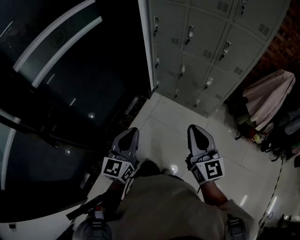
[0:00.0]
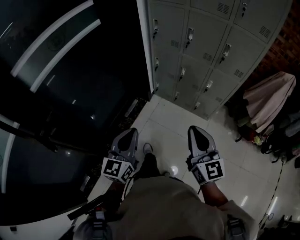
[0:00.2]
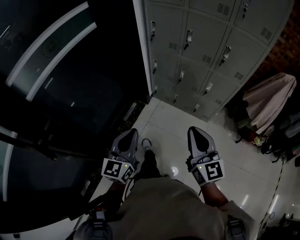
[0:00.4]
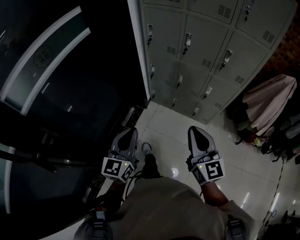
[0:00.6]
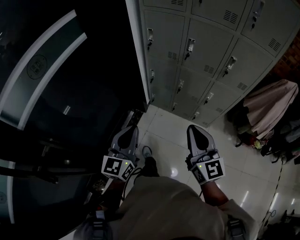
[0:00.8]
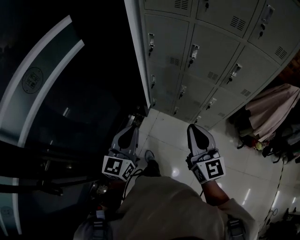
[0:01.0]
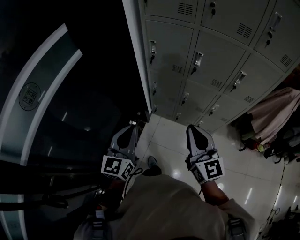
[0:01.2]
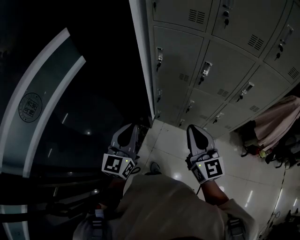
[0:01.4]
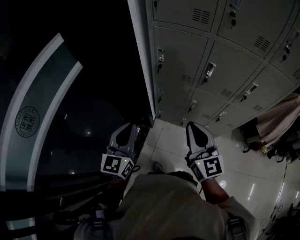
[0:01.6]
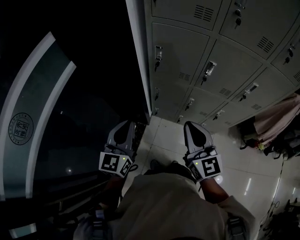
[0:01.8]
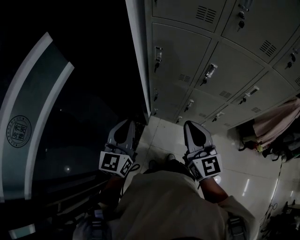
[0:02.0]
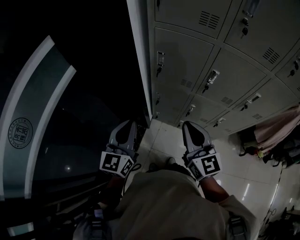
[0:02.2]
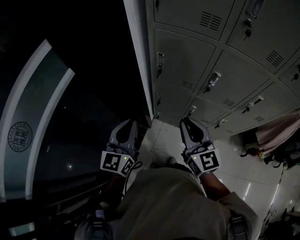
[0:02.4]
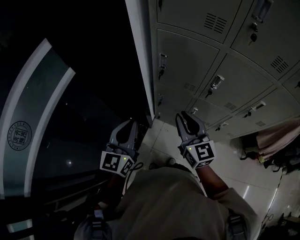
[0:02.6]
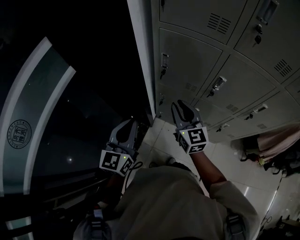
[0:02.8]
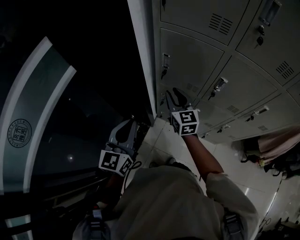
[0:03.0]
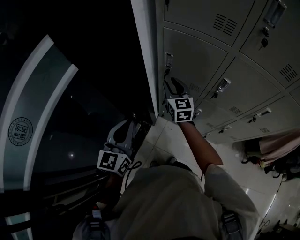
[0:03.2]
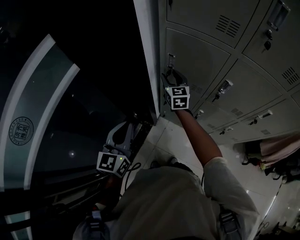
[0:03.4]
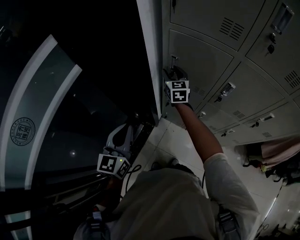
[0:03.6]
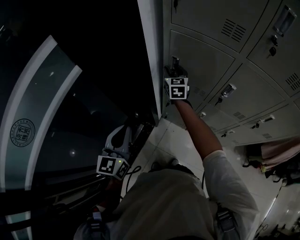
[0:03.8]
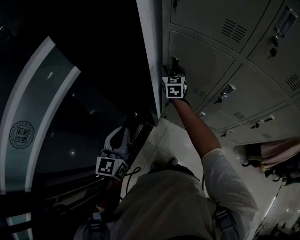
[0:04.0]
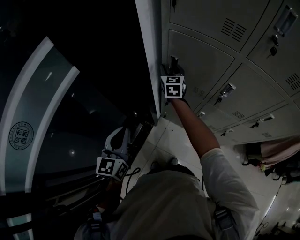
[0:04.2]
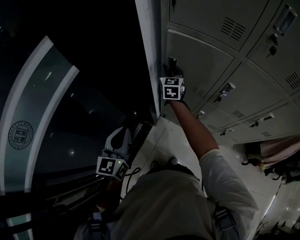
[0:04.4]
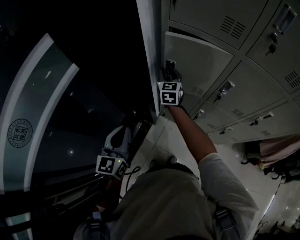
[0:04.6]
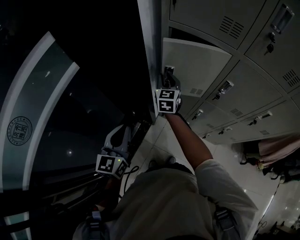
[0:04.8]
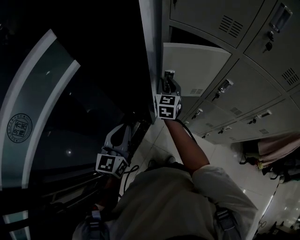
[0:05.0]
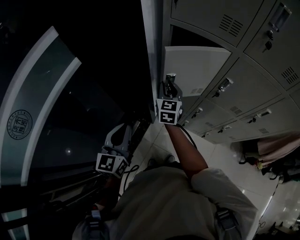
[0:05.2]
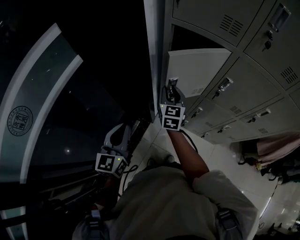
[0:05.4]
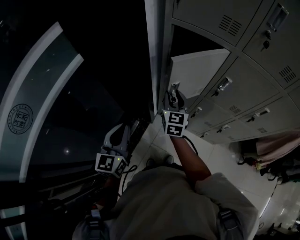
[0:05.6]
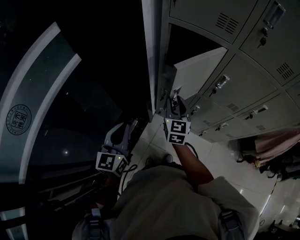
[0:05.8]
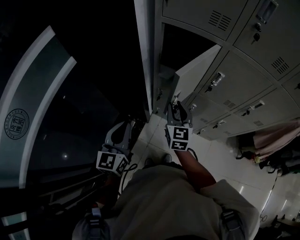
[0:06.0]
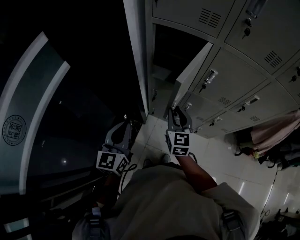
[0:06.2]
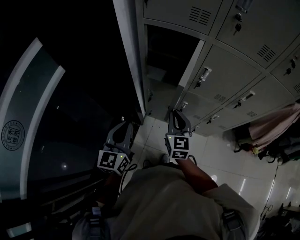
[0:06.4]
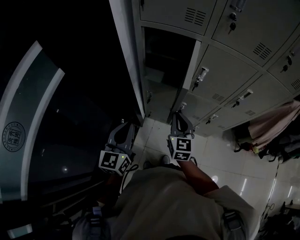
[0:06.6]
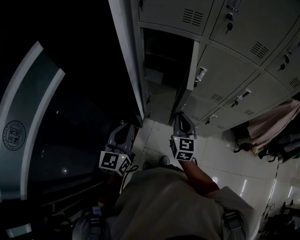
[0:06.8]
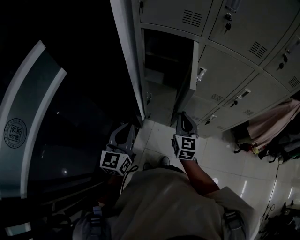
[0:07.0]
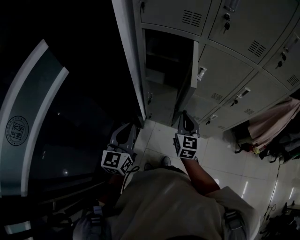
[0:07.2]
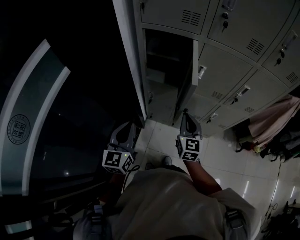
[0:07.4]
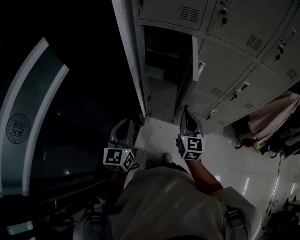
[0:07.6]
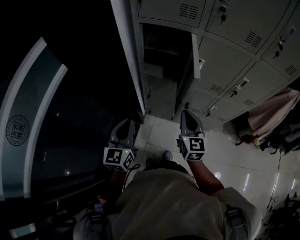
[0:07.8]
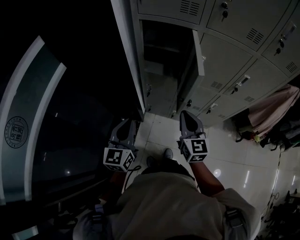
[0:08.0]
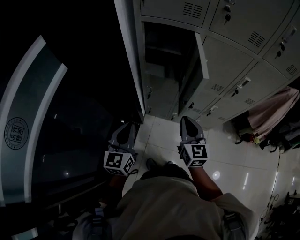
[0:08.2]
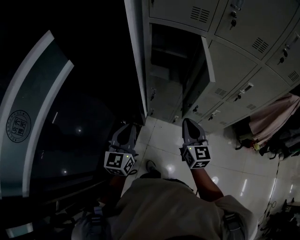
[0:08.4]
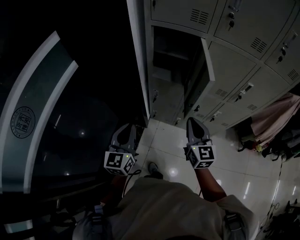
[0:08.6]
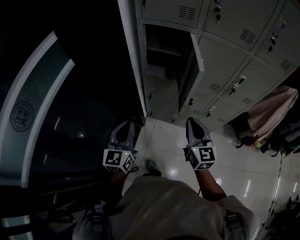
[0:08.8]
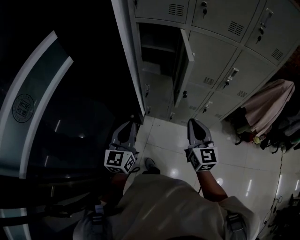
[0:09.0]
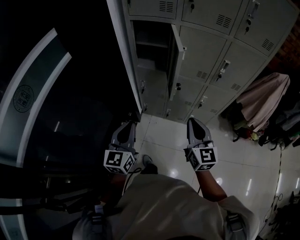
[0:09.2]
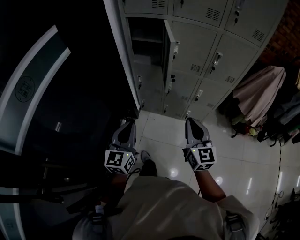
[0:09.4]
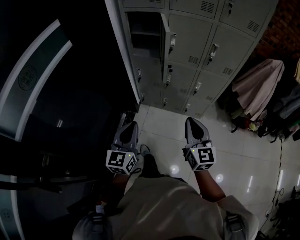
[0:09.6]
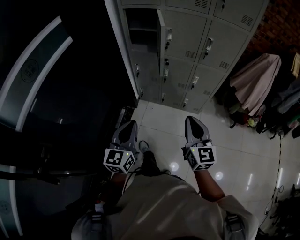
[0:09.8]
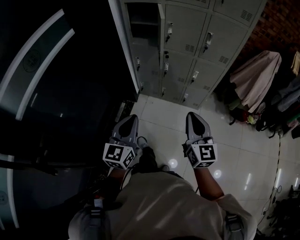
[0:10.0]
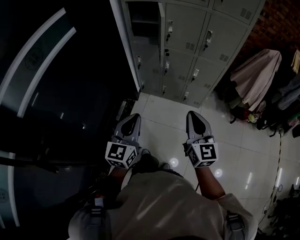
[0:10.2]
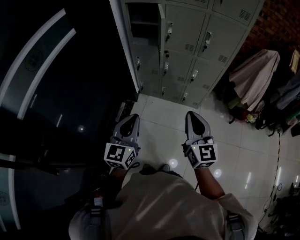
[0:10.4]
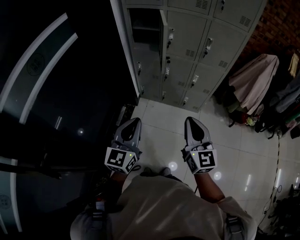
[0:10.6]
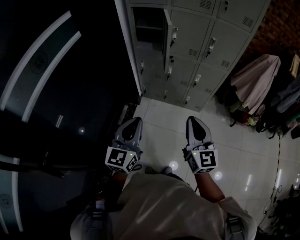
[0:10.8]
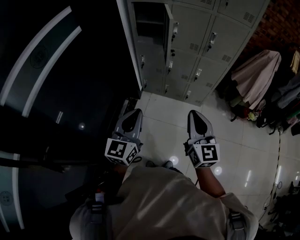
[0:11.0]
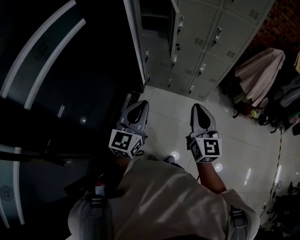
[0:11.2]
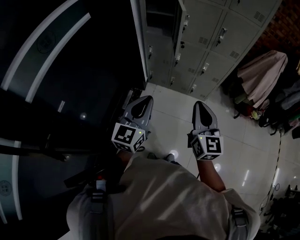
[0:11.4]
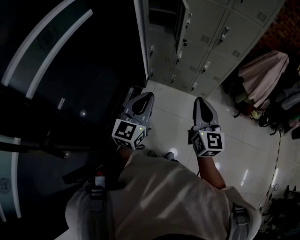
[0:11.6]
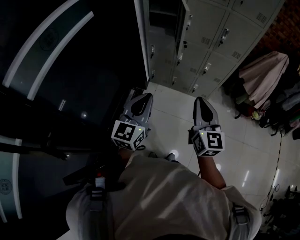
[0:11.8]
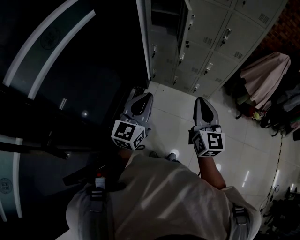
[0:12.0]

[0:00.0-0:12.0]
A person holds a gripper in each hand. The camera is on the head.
0:00.0 to 0:01.6: The pair of grippers is taken forward, approximately 50 cm.
0:01.6 to 0:03.0: The right gripper travels forward and downward by approximately 30 cm, and opens up. The left gripper heads forward, covering some 10 cm.
0:03.0 to 0:04.4: The left gripper shifts approximately 5 cm to the left; the right gripper heads forward, covering roughly 15 cm.
0:04.4 to 0:06.0: The right gripper moves backward, approximately 25 cm.
0:06.0 to 0:07.6: The left gripper moves to the right, about 5 cm, while the right gripper is displaced to the right and backward by approximately 15 cm, and closes its fingers.
0:07.6 to 0:09.0: The right gripper is displaced backward and upward by some 15 cm, while the left gripper is displaced backward by some 10 cm.
0:09.0 to 0:10.4: Both grippers move backward and to the right, some 30 cm.
0:10.4 to 0:12.0: The left gripper moves roughly 5 cm, while the right gripper travels to the left by about 5 cm.

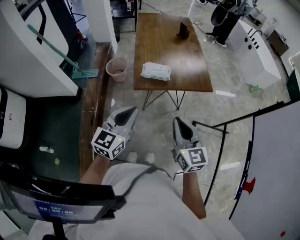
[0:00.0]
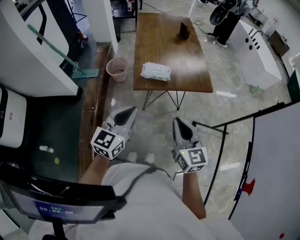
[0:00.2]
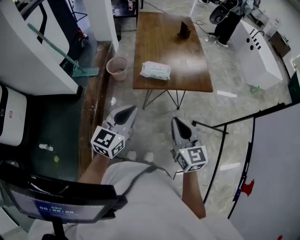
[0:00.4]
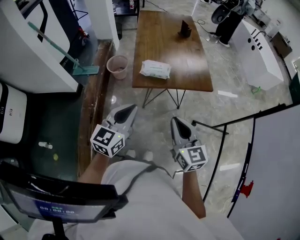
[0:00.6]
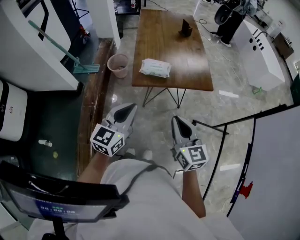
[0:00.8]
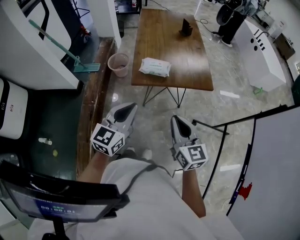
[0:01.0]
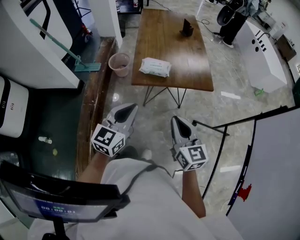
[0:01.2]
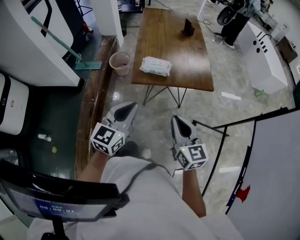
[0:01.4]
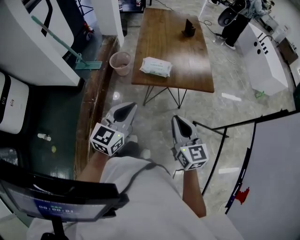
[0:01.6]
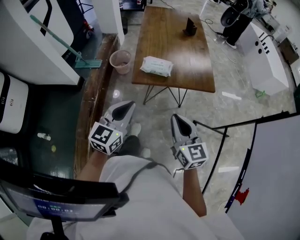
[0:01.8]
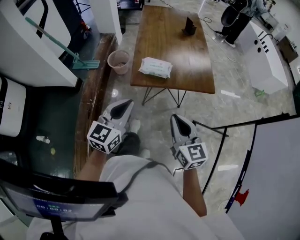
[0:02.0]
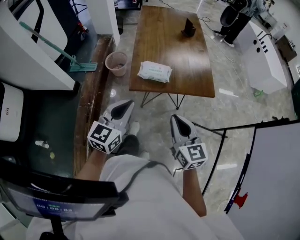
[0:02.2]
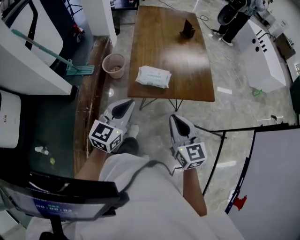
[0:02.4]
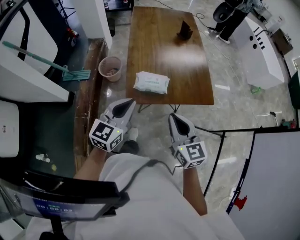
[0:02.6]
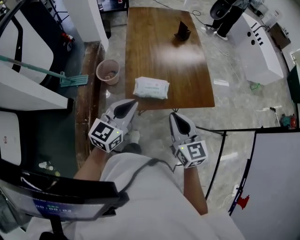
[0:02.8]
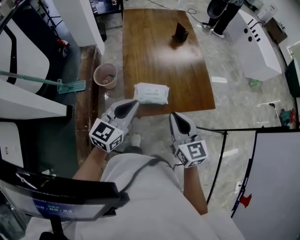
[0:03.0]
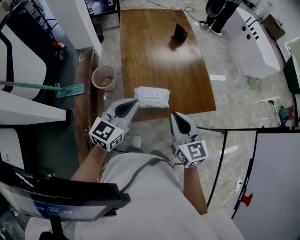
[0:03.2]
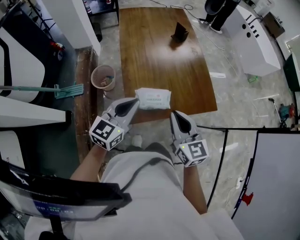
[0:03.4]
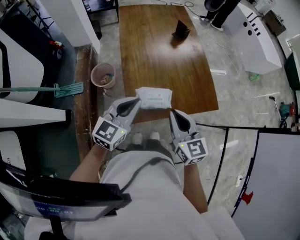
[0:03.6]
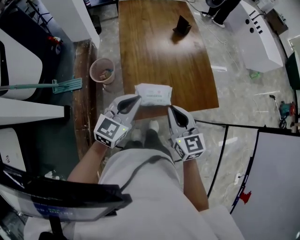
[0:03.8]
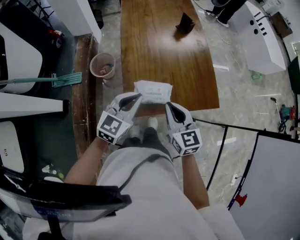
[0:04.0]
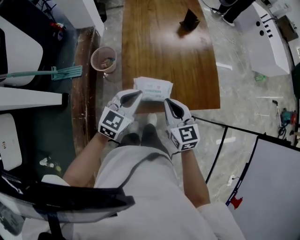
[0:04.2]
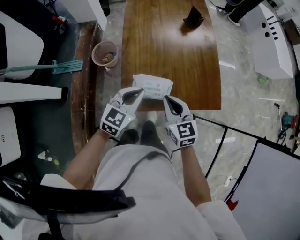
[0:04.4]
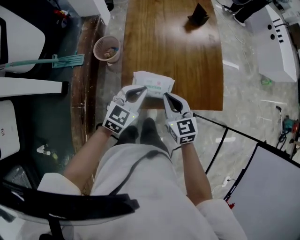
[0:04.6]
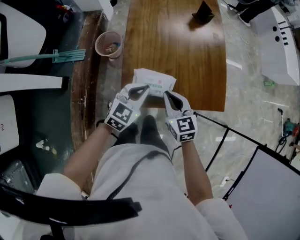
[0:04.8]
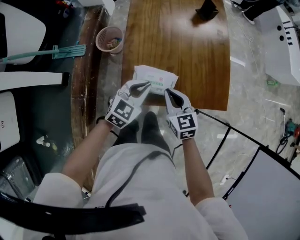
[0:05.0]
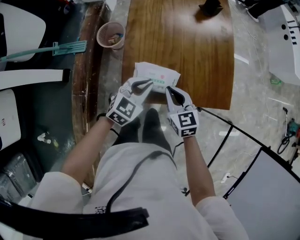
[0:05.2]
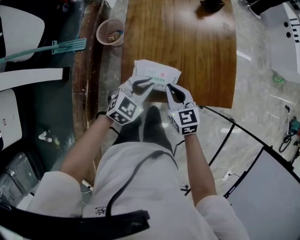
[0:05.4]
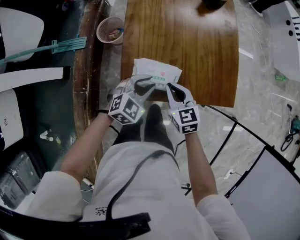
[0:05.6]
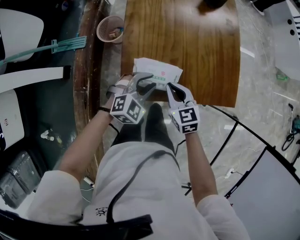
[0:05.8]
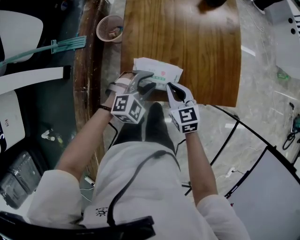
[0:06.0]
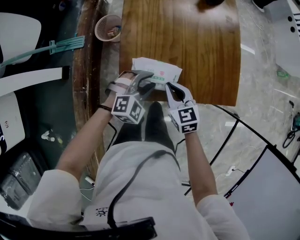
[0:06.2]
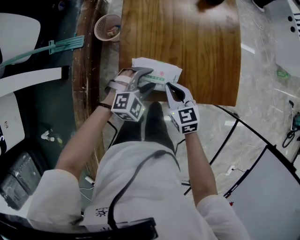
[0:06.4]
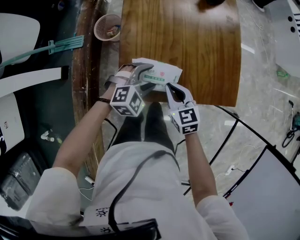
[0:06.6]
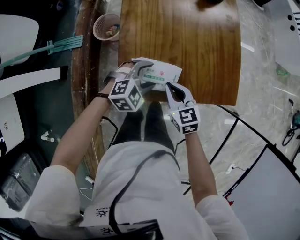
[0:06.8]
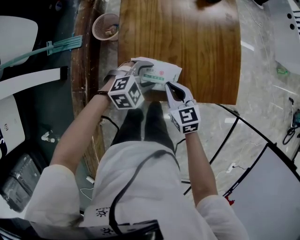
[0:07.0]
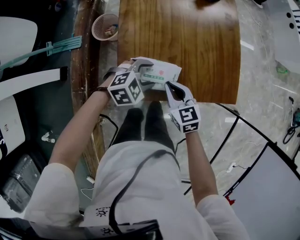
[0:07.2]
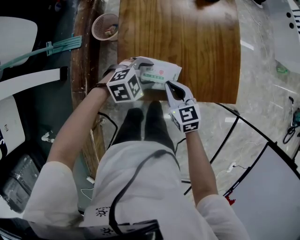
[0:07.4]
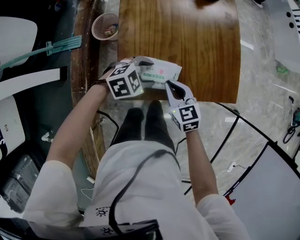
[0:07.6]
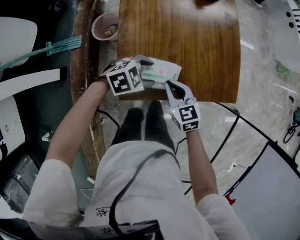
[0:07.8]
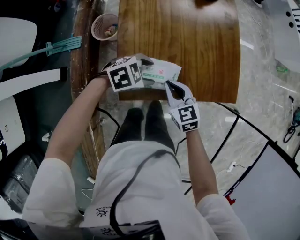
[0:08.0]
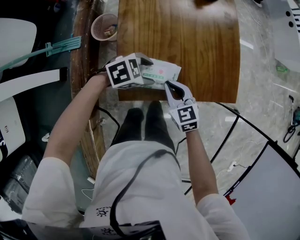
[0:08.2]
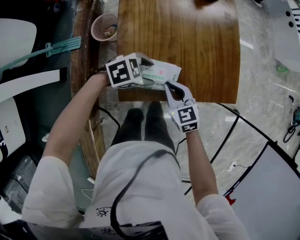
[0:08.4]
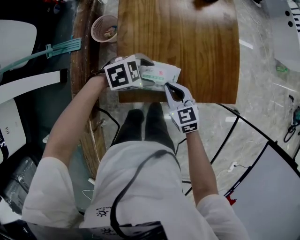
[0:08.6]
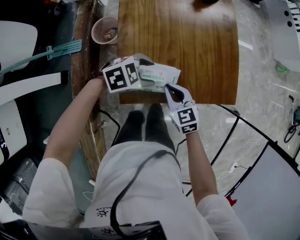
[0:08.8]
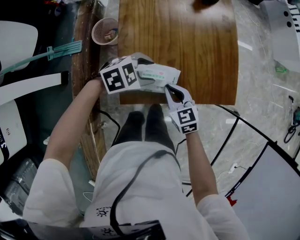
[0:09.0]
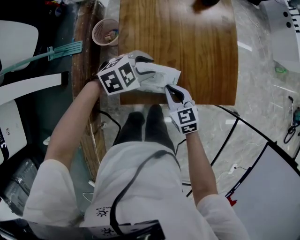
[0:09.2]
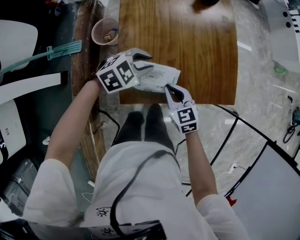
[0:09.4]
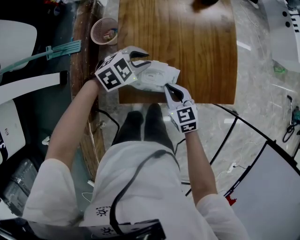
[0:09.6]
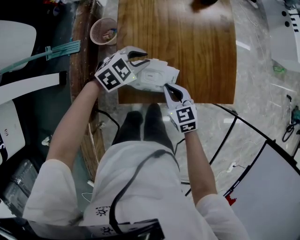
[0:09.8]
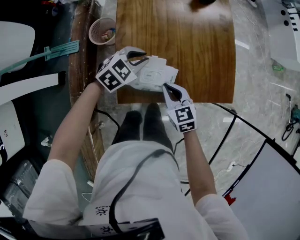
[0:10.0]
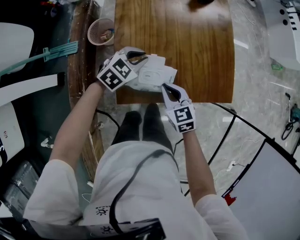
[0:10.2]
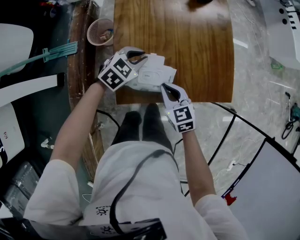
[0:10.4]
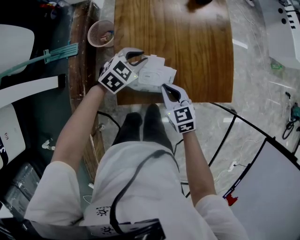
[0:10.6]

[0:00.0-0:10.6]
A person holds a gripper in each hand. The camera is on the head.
0:00.0 to 0:01.6: The grippers stay close to where they were, moving slightly.
0:01.6 to 0:03.0: The two grippers go some 25 cm forward.
0:03.0 to 0:04.6: The two grippers go about 15 cm downward and forward.
0:04.6 to 0:06.0: Both grippers travel together downward, roughly 10 cm. The left gripper changes its angle by roughly 40 degrees, and opens up.
0:06.0 to 0:07.6: The left gripper changes its angle by some 30 degrees.
0:07.6 to 0:09.0: The grippers move only a little.
0:09.0 to 0:10.6: The left gripper moves forward, about 5 cm, rotates approximately 30 degrees, and closes.

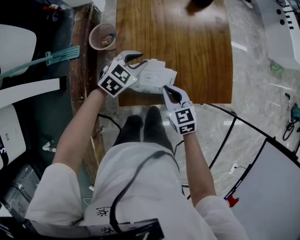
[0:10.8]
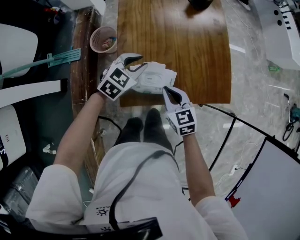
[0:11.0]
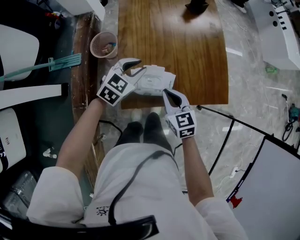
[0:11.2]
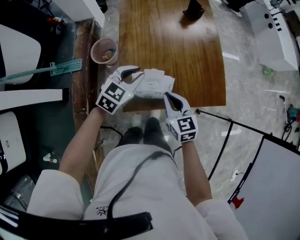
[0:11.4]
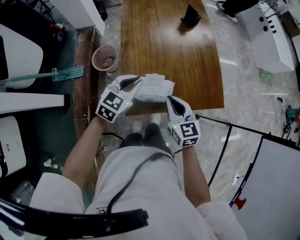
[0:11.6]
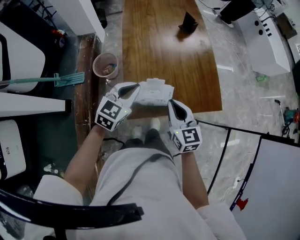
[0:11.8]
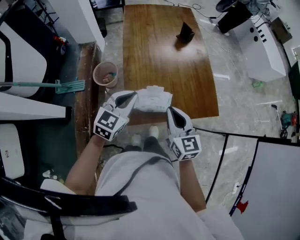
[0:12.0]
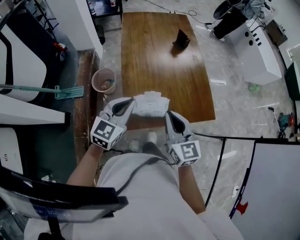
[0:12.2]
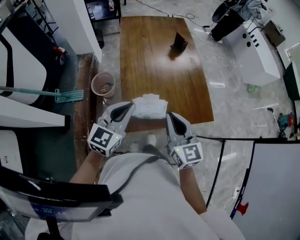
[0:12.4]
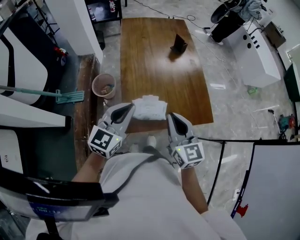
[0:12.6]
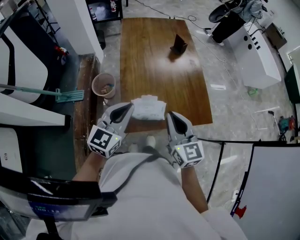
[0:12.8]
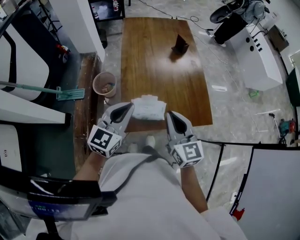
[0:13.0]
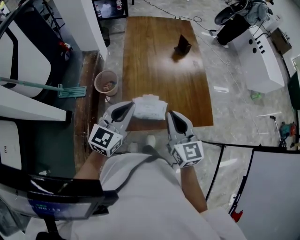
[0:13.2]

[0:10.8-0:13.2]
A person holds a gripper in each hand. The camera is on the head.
0:10.8 to 0:12.0: The left gripper heads upward and backward, covering some 20 cm, turns by roughly 20 degrees, and closes up. Meanwhile the right gripper is displaced upward by approximately 15 cm, and changes its angle by roughly 30 degrees.
0:12.0 to 0:13.2: Both grippers move upward, approximately 5 cm.
